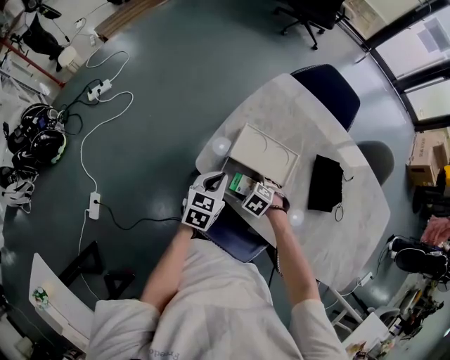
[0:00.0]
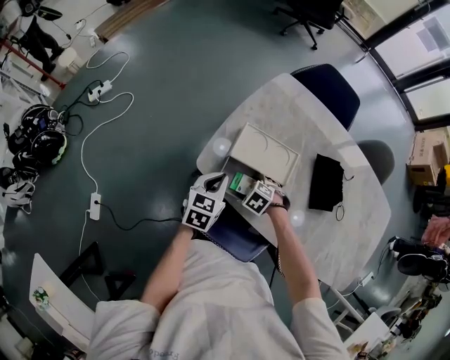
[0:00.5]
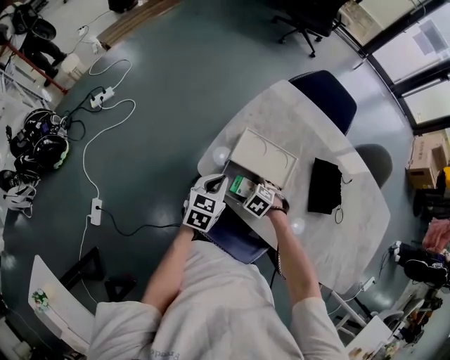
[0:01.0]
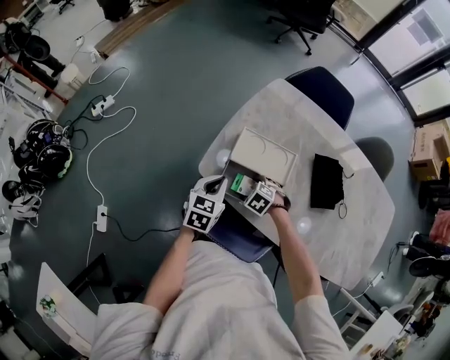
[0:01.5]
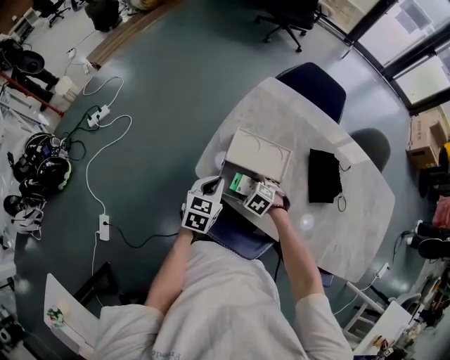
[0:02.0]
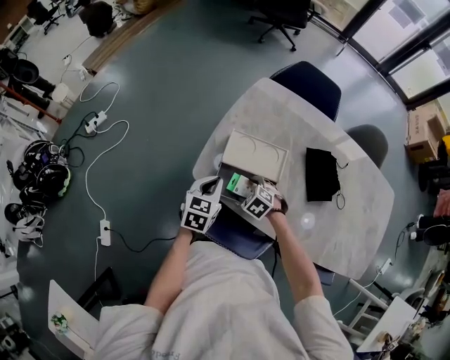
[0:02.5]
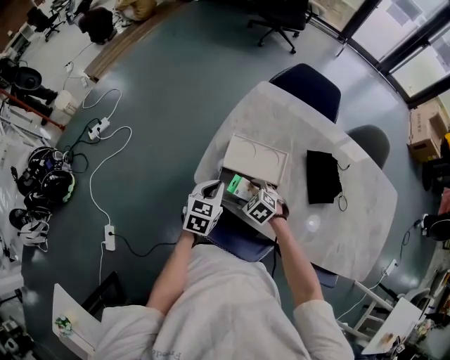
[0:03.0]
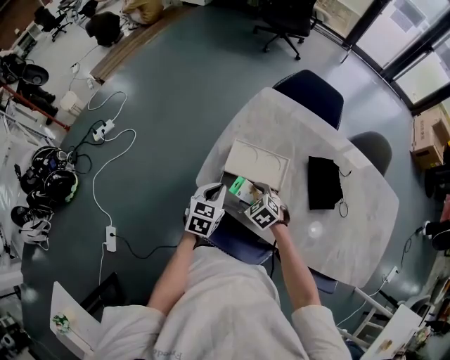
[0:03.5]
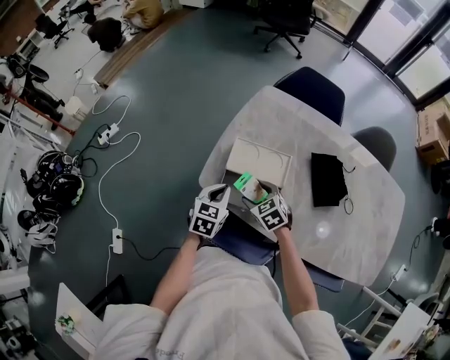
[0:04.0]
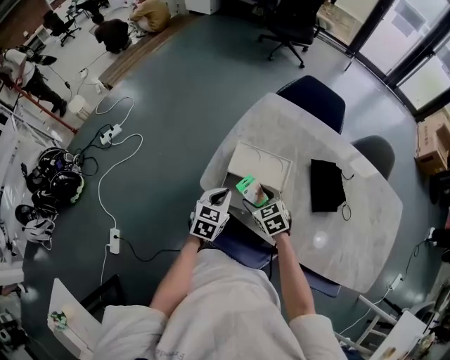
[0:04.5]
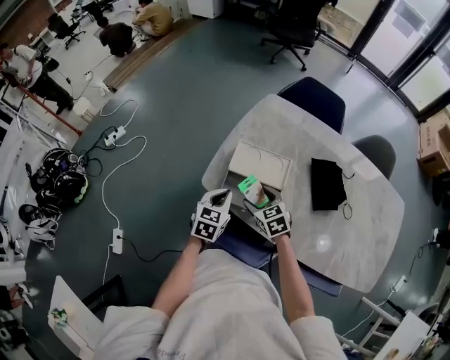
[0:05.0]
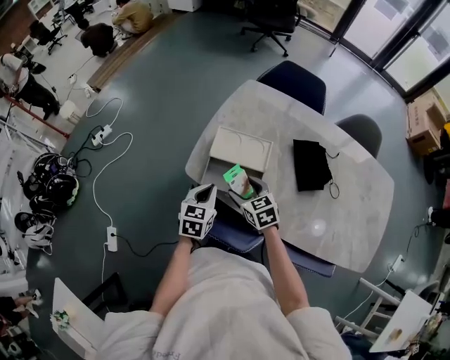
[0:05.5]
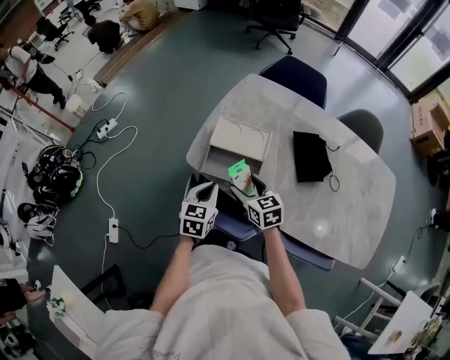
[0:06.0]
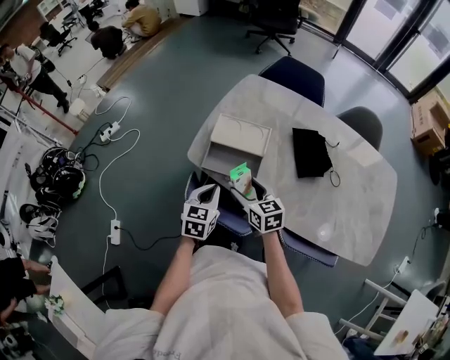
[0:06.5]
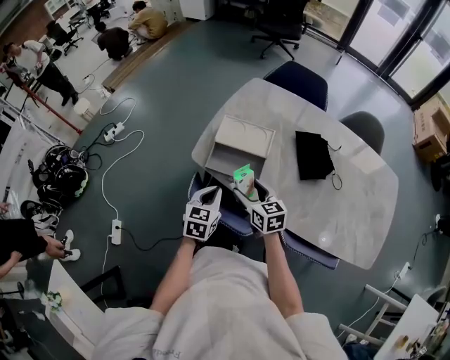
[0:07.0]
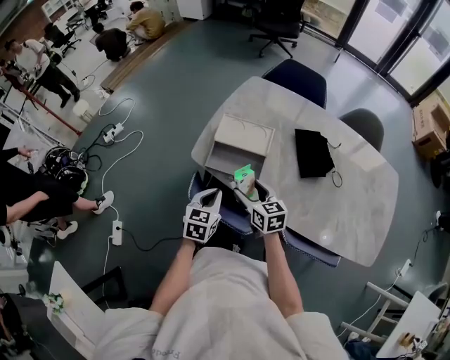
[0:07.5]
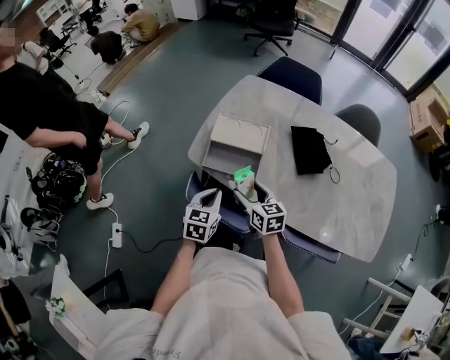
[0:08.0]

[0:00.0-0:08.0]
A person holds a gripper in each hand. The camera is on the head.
0:00.0 to 0:02.0: The grippers stay close to where they were, moving slightly.
0:02.0 to 0:04.0: The right gripper heads upward, covering approximately 10 cm, and turns by approximately 30 degrees.
0:04.0 to 0:06.0: The left gripper heads backward, covering approximately 10 cm. Meanwhile the right gripper goes approximately 10 cm upward and backward, and rotates roughly 30 degrees.
0:06.0 to 0:08.0: Both grippers travel together backward, about 5 cm.

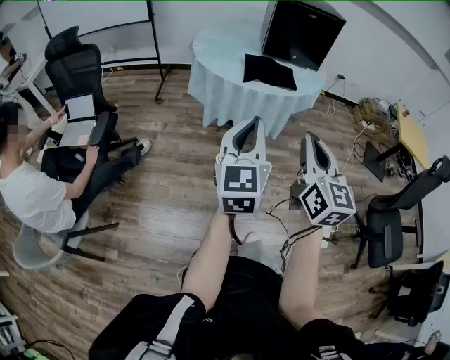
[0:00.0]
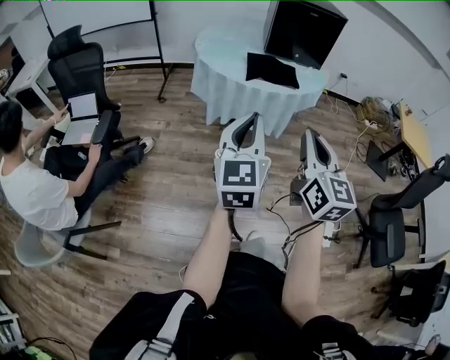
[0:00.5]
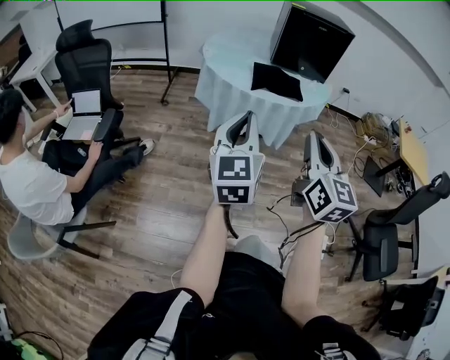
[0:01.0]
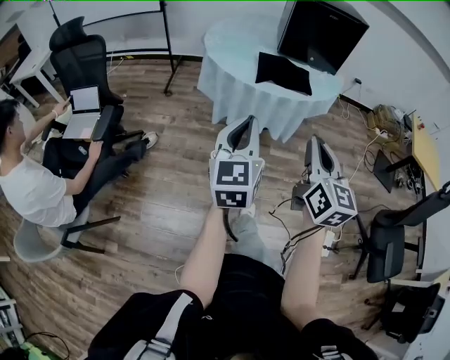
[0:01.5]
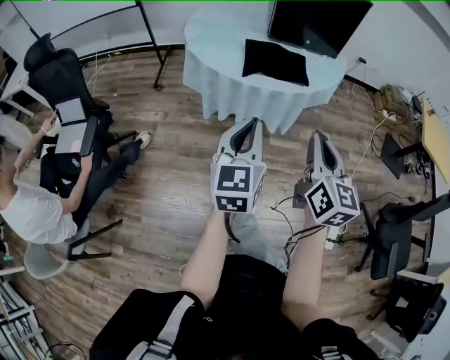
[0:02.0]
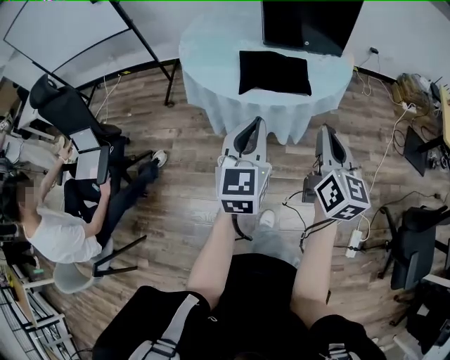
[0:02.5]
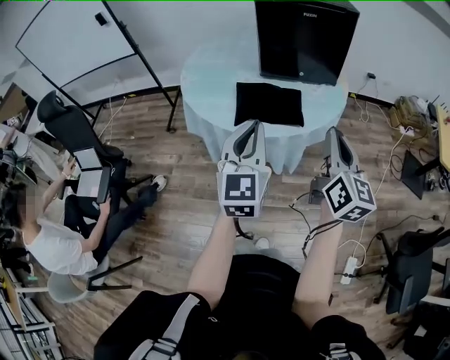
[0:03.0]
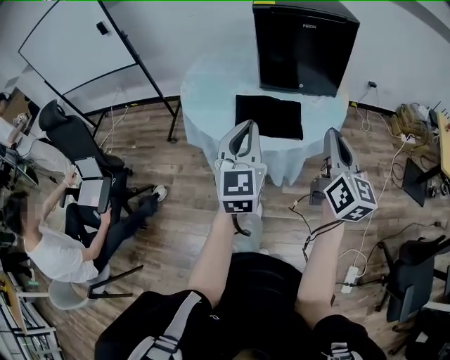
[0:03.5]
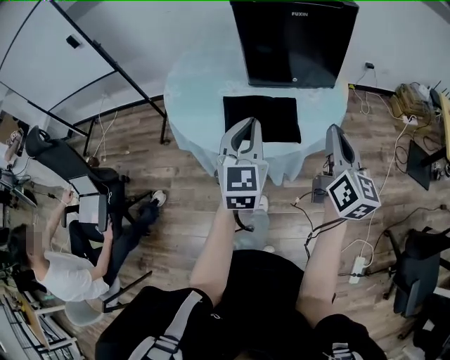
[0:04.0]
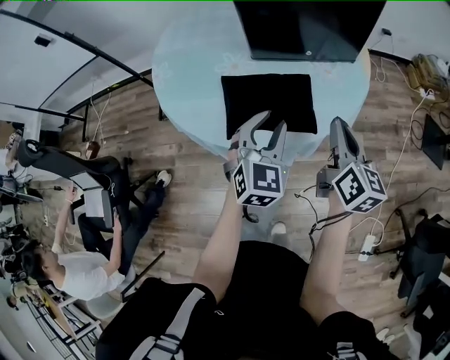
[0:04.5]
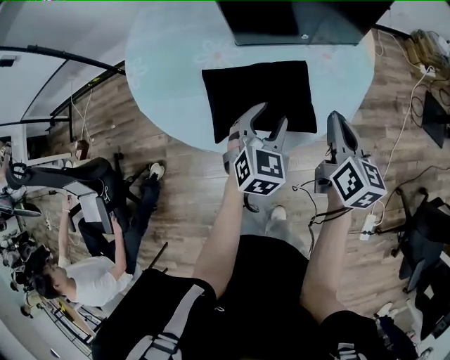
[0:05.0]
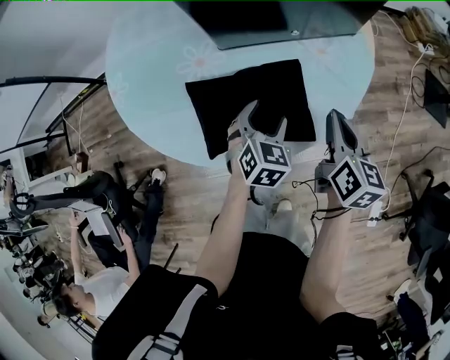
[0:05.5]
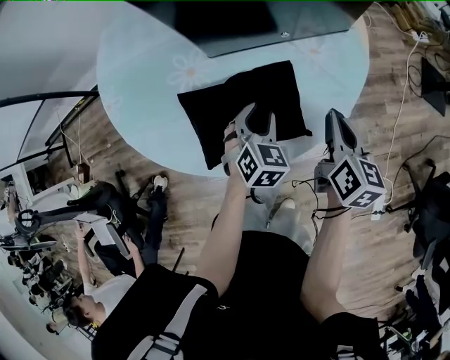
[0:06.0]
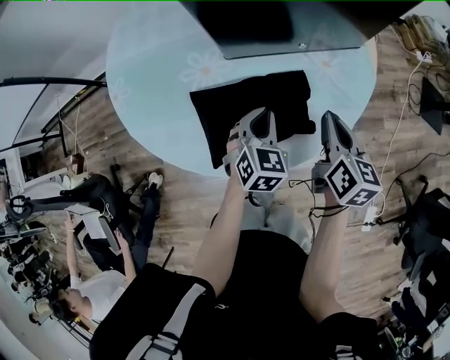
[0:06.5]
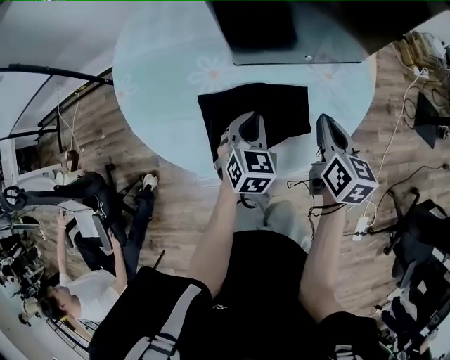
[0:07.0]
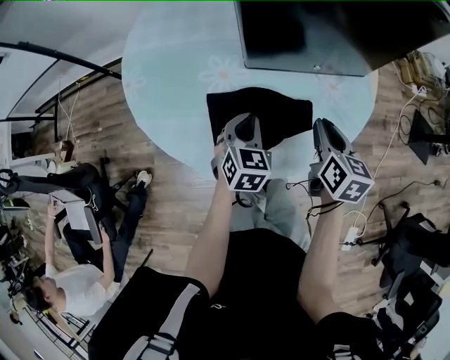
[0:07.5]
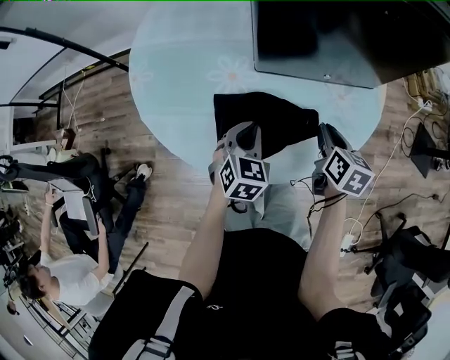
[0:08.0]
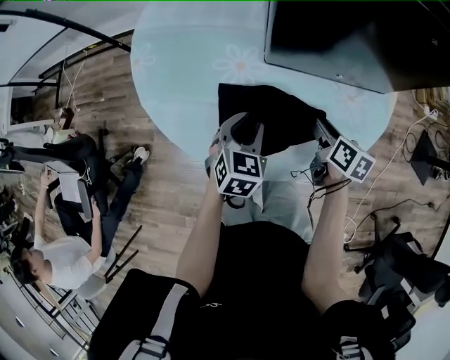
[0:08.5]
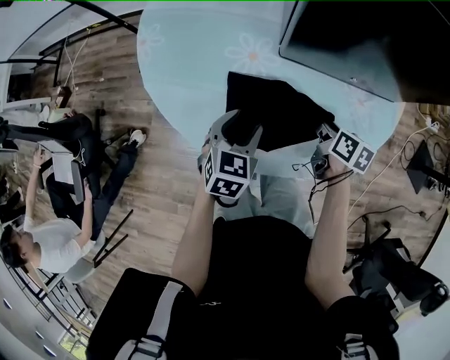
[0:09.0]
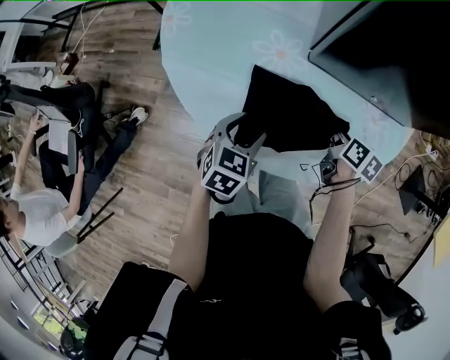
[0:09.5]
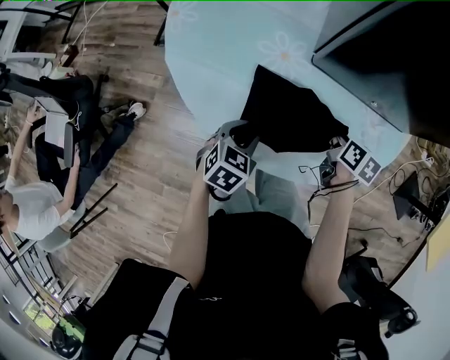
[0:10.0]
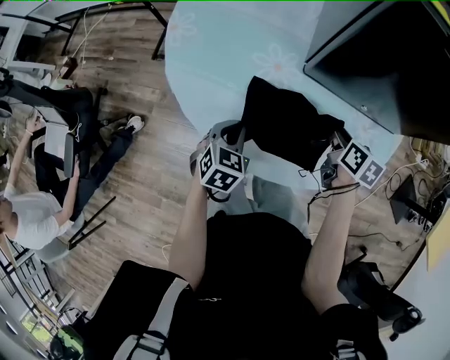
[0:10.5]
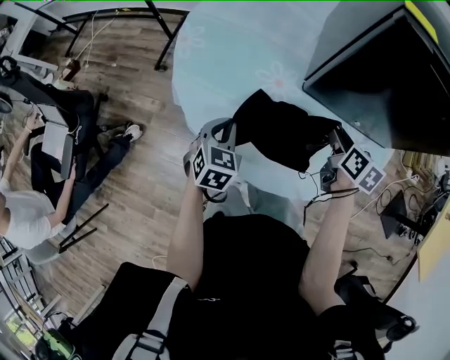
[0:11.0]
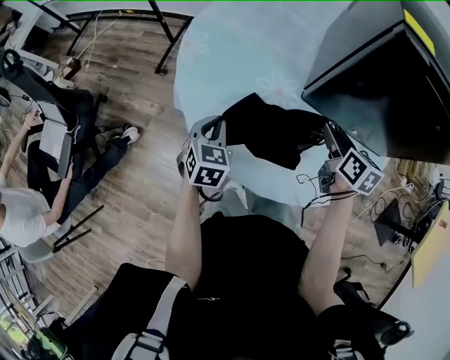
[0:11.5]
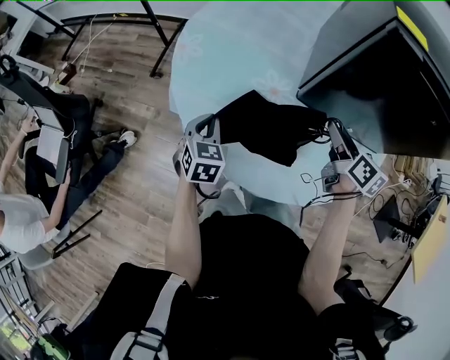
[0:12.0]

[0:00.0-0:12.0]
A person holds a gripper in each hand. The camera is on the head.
0:00.0 to 0:02.0: The left gripper shifts approximately 20 cm forward and downward. Meanwhile the right gripper shifts approximately 20 cm forward, downward and to the right.
0:02.0 to 0:04.0: The left gripper moves forward, roughly 30 cm, while the right gripper shifts some 30 cm forward and to the right.
0:04.0 to 0:06.0: Both grippers move downward and forward, about 30 cm. The left gripper tips its fingers downward by approximately 40 degrees, and opens up; the right gripper swivels about 30 degrees.
0:06.0 to 0:08.0: The right gripper moves to the left, approximately 5 cm; the left gripper shifts roughly 10 cm to the left, and closes.
0:08.0 to 0:10.0: The right gripper shifts some 10 cm downward and to the left, and opens, then closes once more; the left gripper shifts roughly 10 cm to the left, backward and downward, swivels roughly 20 degrees, and opens, then closes again.
0:10.0 to 0:12.0: The left gripper travels to the left and forward by approximately 15 cm, swivels roughly 30 degrees, and closes up; the right gripper goes roughly 15 cm upward and forward, and turns by approximately 30 degrees.

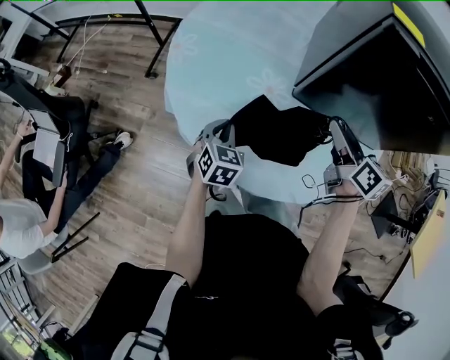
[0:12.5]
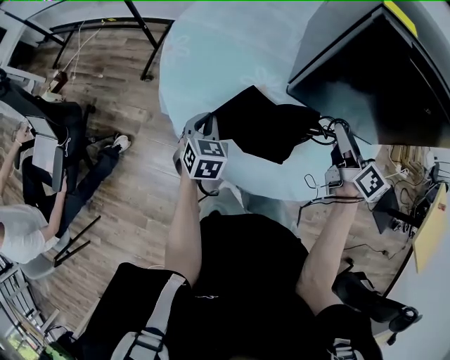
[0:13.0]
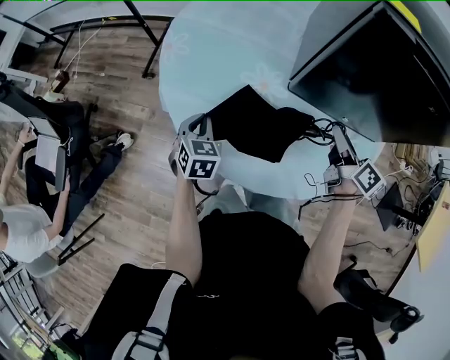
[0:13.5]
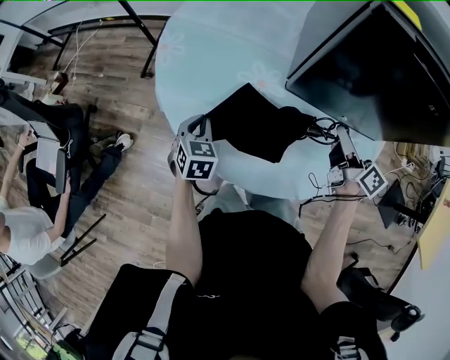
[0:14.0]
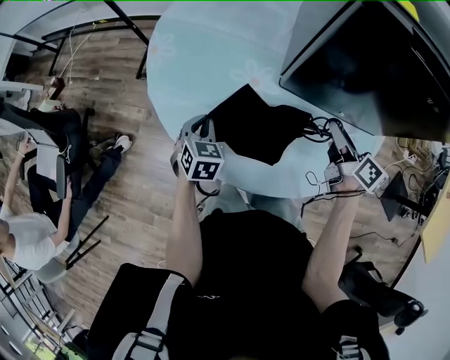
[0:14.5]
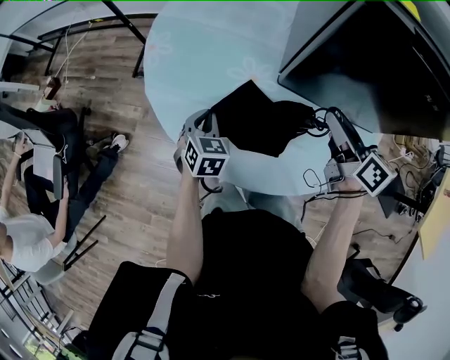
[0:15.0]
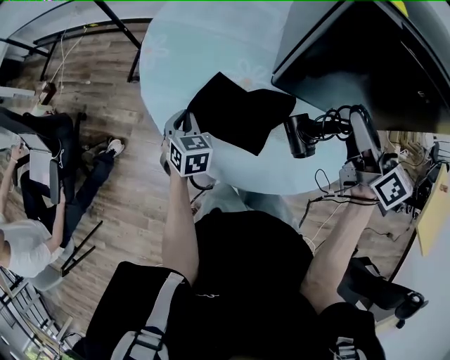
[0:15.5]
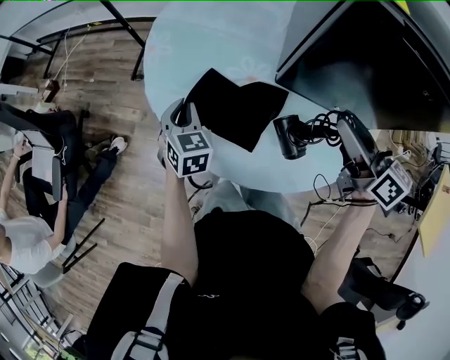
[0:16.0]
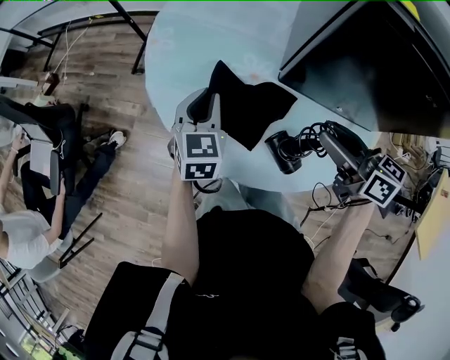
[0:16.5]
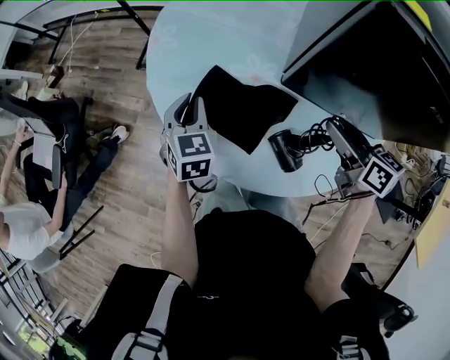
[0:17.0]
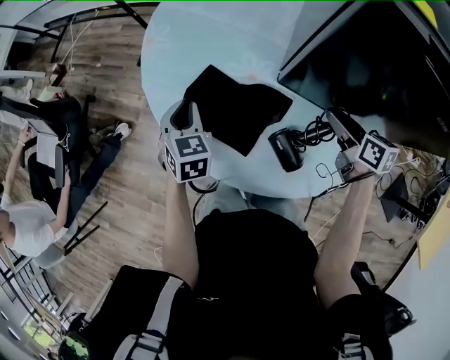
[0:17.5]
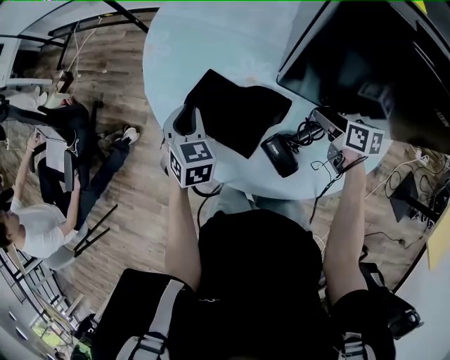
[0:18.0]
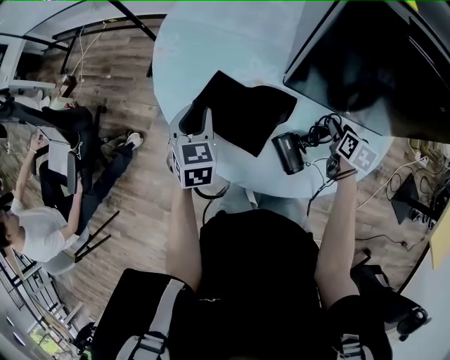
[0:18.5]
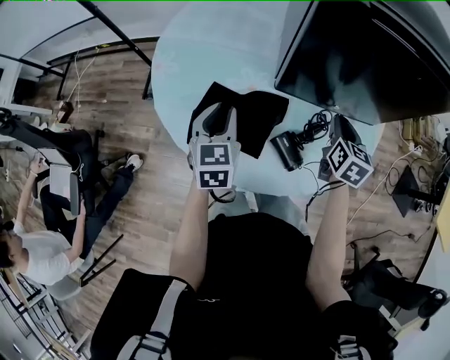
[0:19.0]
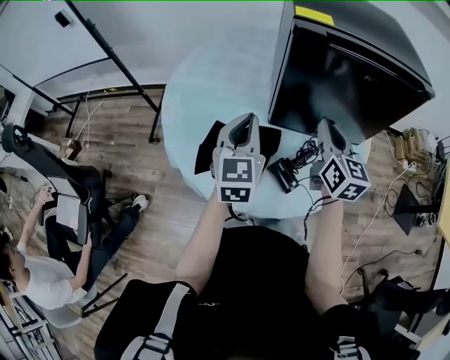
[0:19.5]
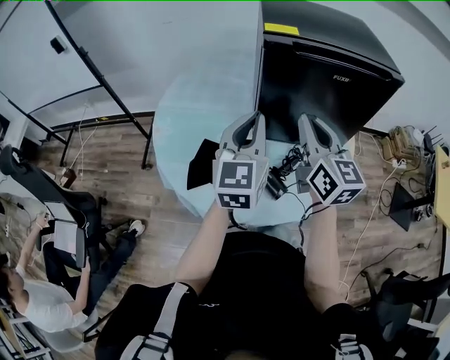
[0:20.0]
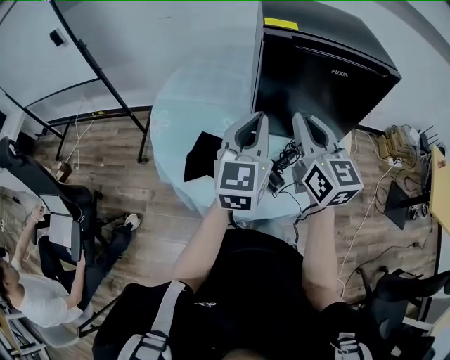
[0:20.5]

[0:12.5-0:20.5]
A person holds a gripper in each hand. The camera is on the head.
0:12.5 to 0:14.5: The right gripper moves downward and to the right, approximately 10 cm.
0:14.5 to 0:16.5: The right gripper shifts roughly 15 cm upward and to the left, and rotates approximately 40 degrees. The left gripper is displaced upward by approximately 10 cm.
0:16.5 to 0:18.5: The right gripper travels downward by about 20 cm, tips its fingers downward by some 30 degrees, and opens up; the left gripper moves approximately 5 cm.
0:18.5 to 0:20.5: The right gripper travels upward and to the left by about 40 cm, tips its fingers upward by some 50 degrees, and closes its fingers, while the left gripper goes about 30 cm upward and to the right, tilts its fingers roughly 40 degrees upward, and closes up.
